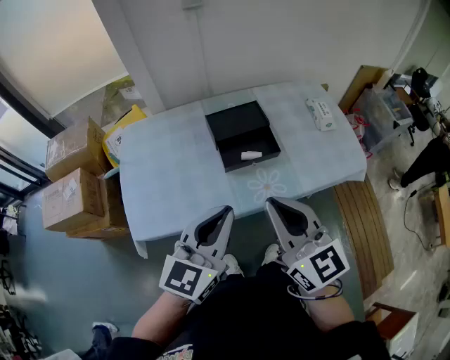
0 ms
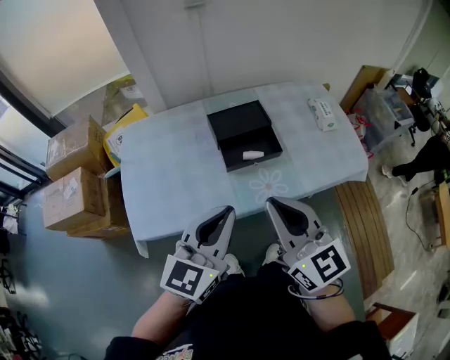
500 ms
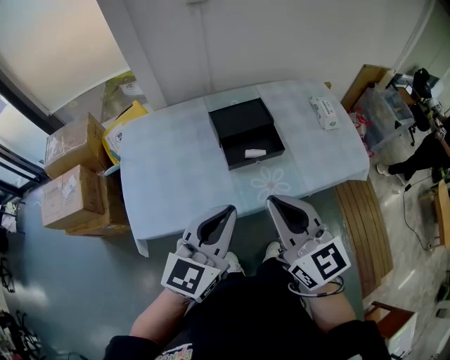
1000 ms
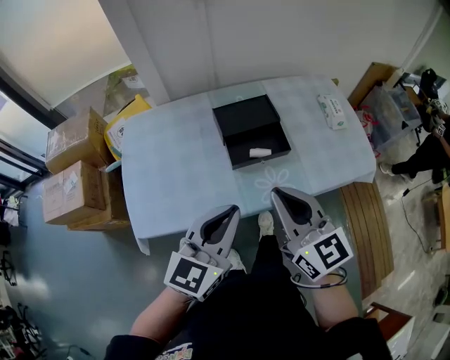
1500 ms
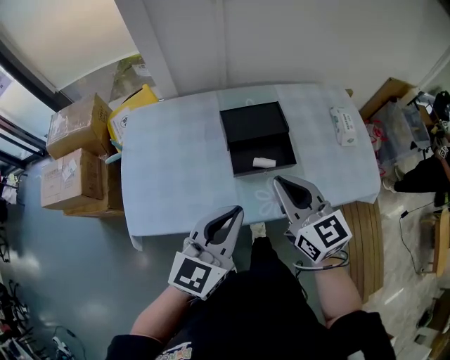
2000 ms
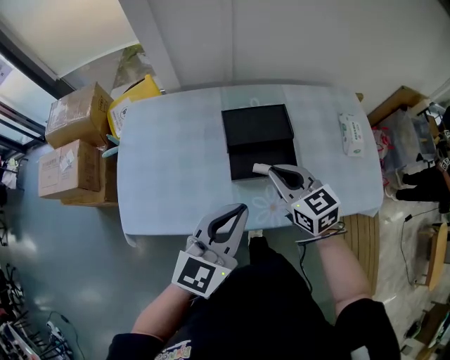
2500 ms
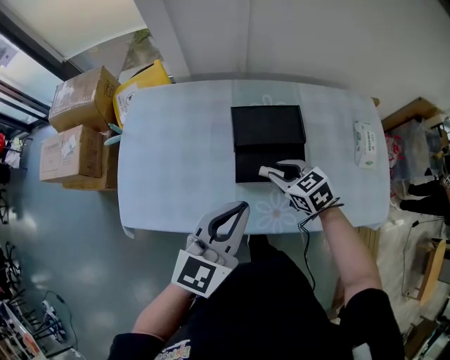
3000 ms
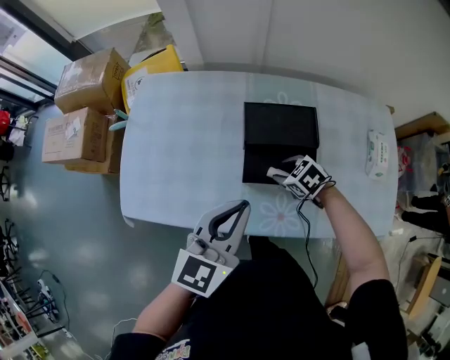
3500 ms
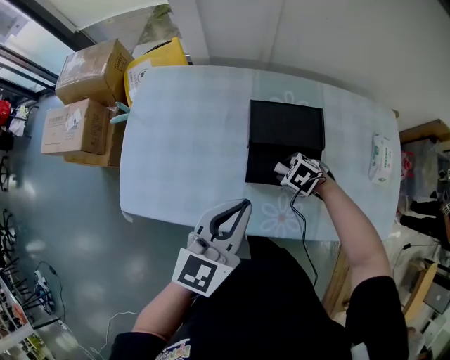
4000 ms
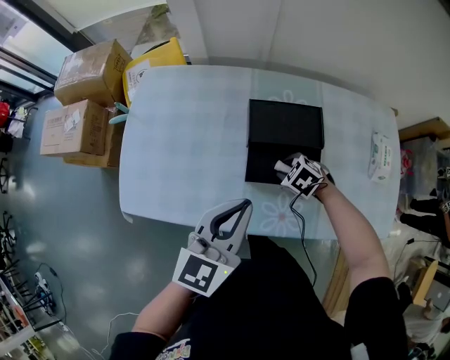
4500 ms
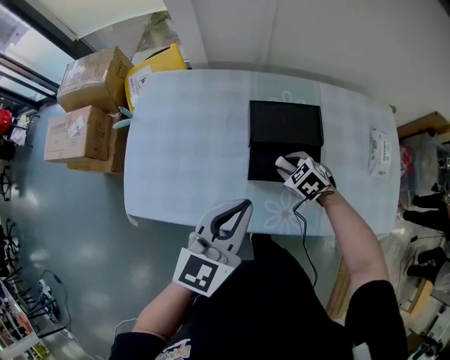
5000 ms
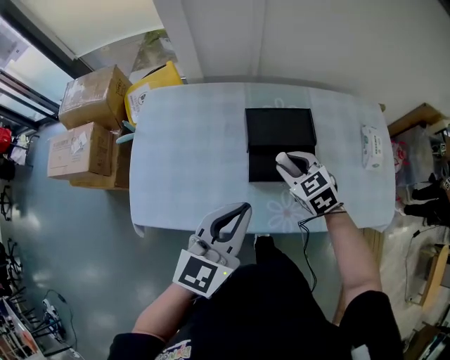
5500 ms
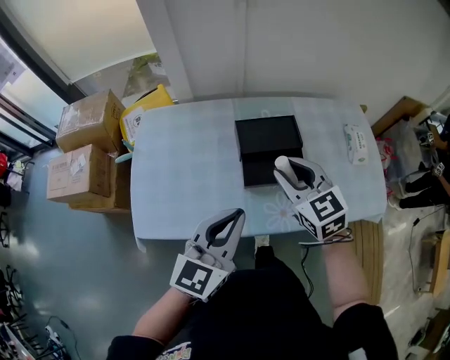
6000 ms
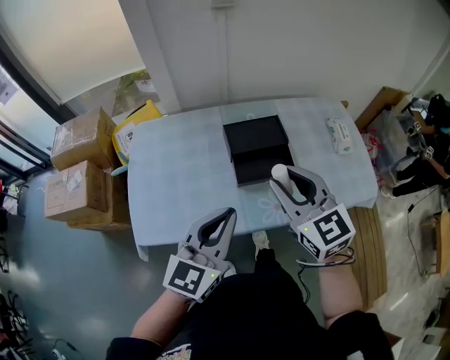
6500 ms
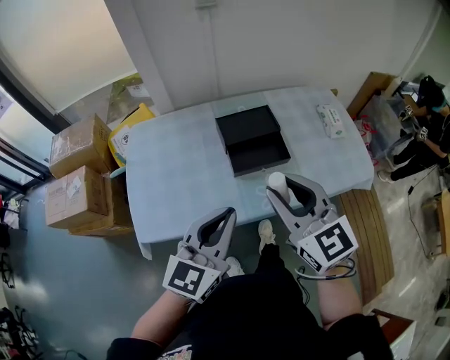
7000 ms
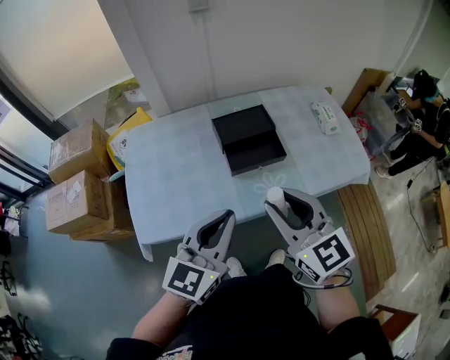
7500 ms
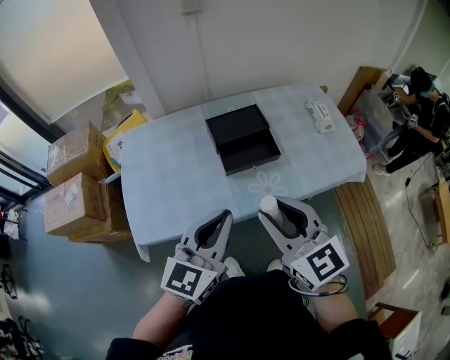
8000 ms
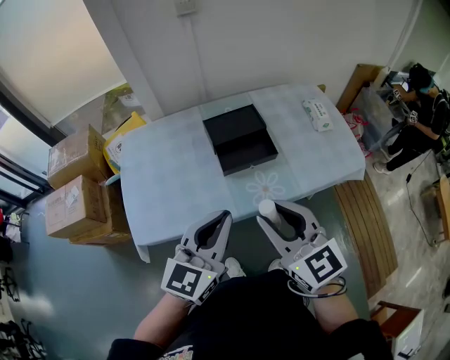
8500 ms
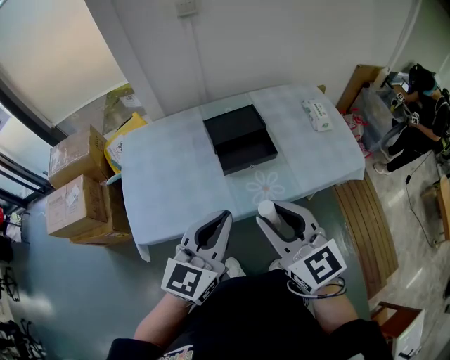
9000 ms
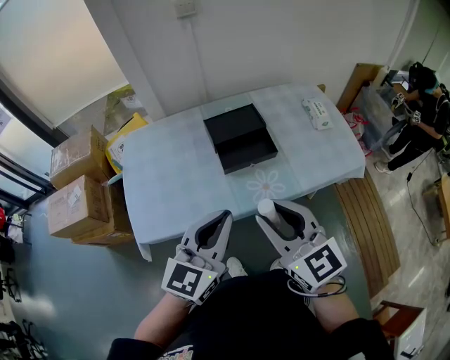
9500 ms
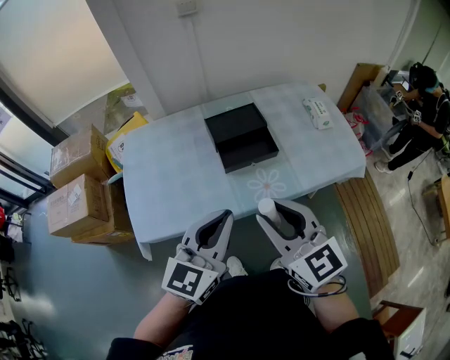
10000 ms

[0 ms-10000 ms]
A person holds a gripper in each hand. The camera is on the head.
0 ms to 2000 ms: The right gripper travels forward and downward by roughly 15 cm, while the left gripper is displaced forward by roughly 5 cm.
2000 ms to 4000 ms: The right gripper travels downward by some 30 cm, points its fingers roughly 60 degrees further downward, and opens its fingers; the left gripper changes place by about 10 cm.
4000 ms to 6000 ms: The right gripper travels upward by roughly 30 cm, and tilts its fingers approximately 50 degrees upward, while the left gripper ends up about 10 cm from where it was.
6000 ms to 8000 ms: The right gripper goes about 20 cm backward, while the left gripper travels backward by some 10 cm.
8000 ms to 10000 ms: There are only small adjustments of the grippers.

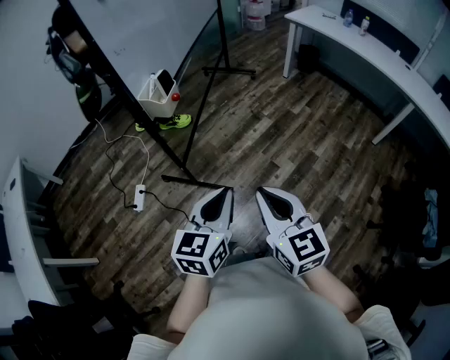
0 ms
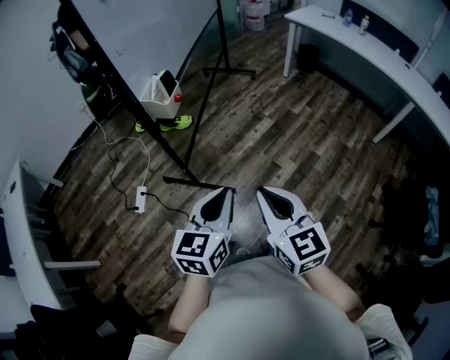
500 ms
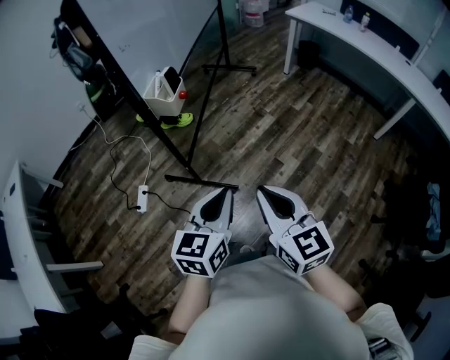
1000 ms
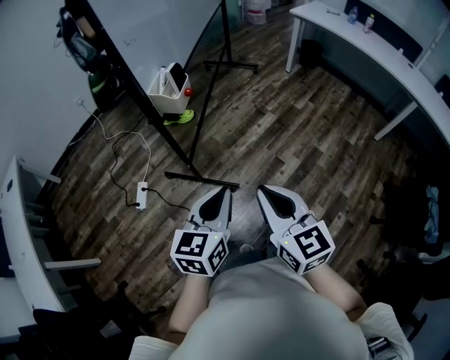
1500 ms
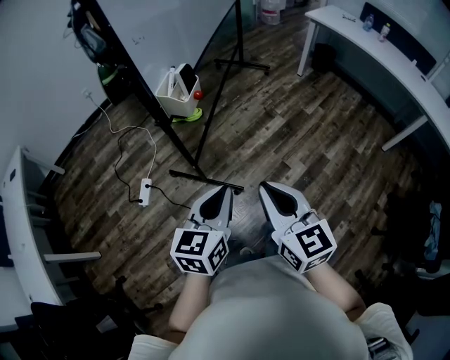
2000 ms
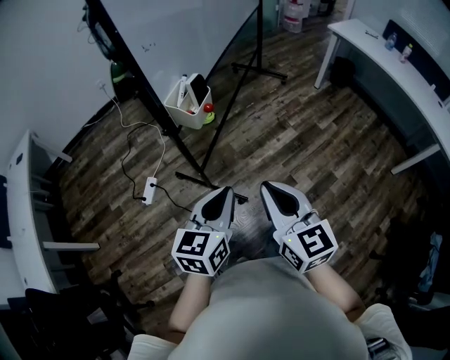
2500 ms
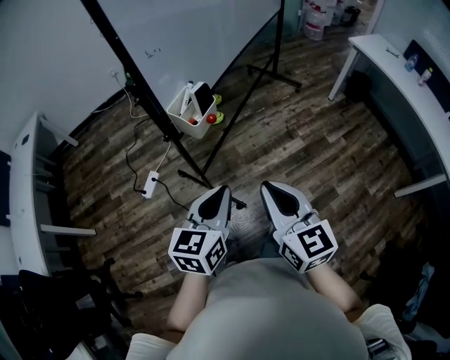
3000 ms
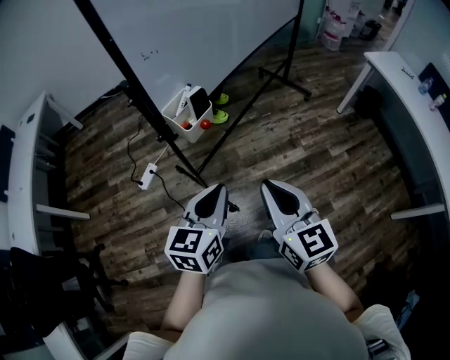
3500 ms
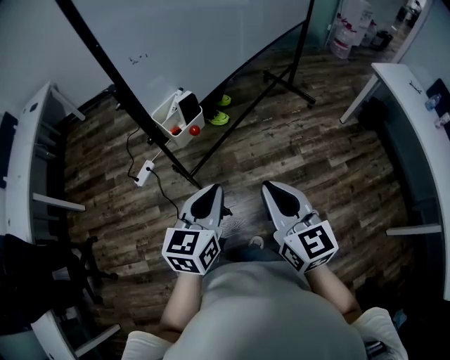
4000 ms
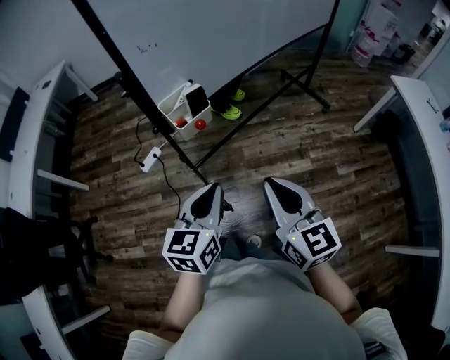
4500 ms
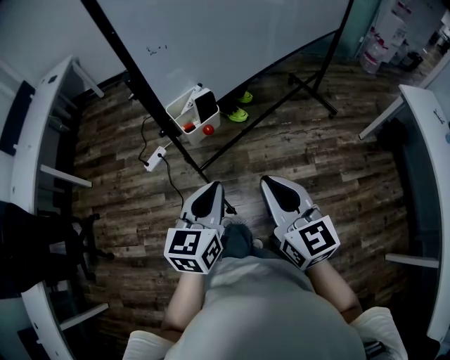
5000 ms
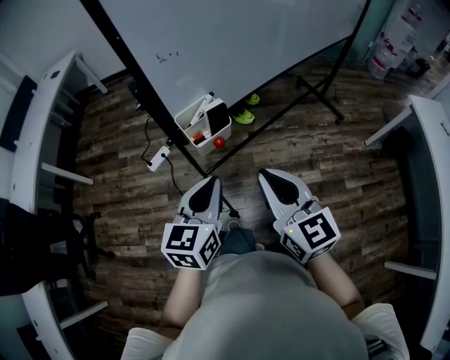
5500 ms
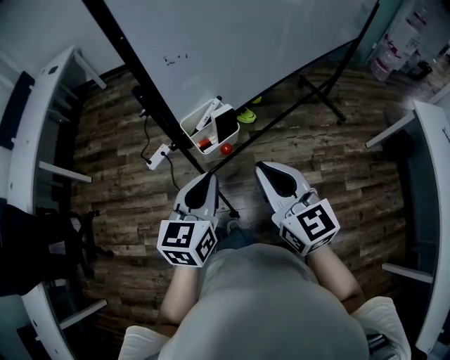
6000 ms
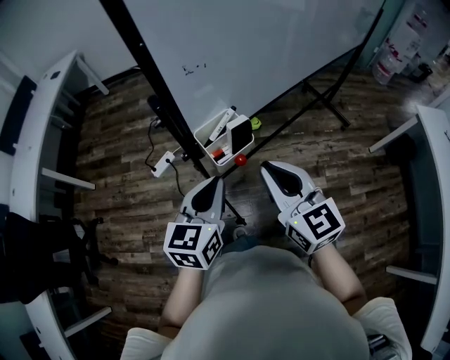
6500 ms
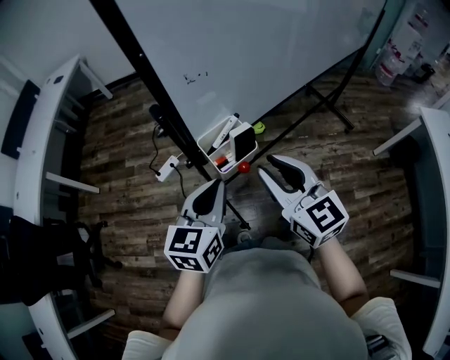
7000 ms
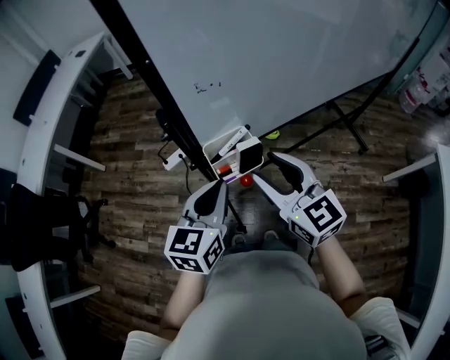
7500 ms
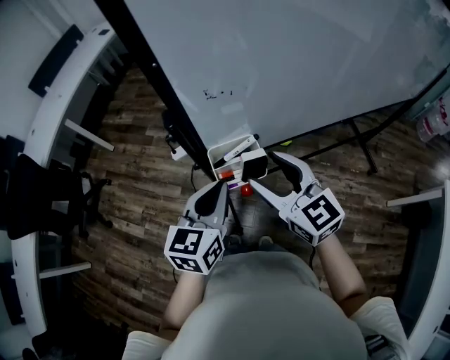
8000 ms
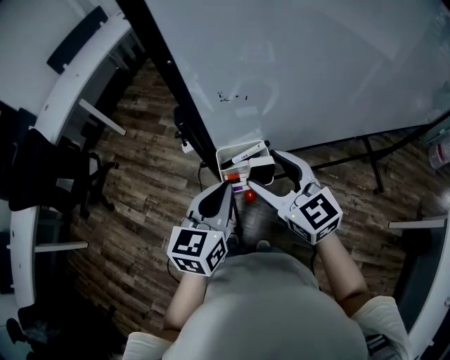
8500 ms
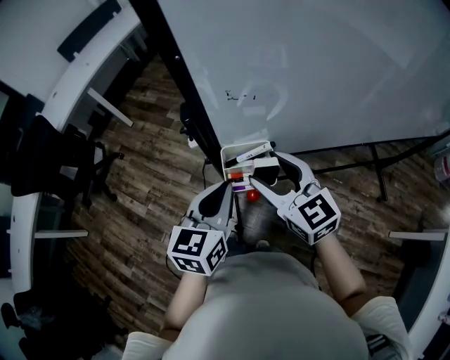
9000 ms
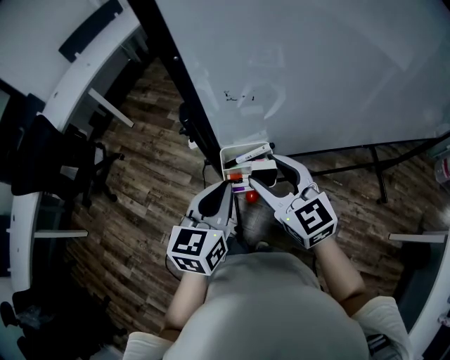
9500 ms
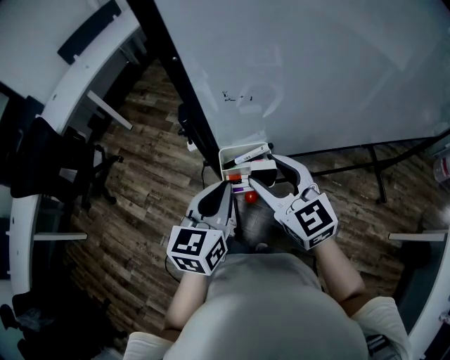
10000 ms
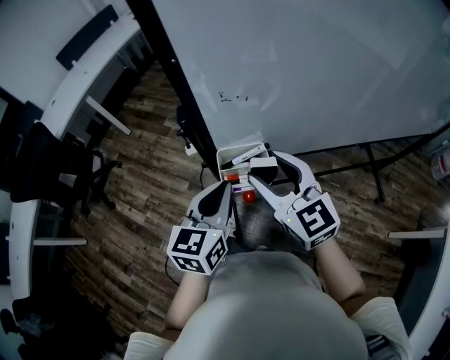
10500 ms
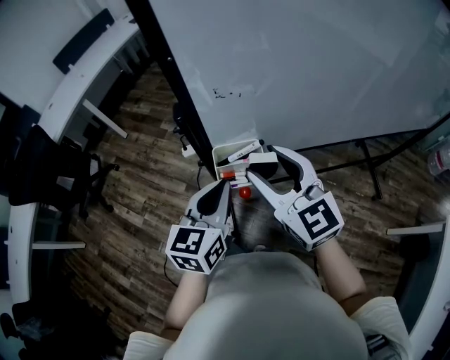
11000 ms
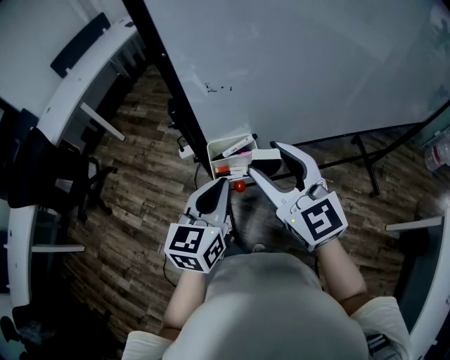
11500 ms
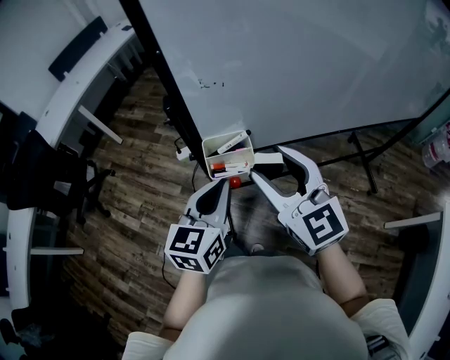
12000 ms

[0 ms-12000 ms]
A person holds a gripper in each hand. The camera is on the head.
0 ms to 2000 ms: Both grippers move to the left and forward, some 10 cm.
2000 ms to 4000 ms: Both grippers move forward and to the right, approximately 20 cm. The left gripper swivels approximately 30 degrees, while the right gripper swivels roughly 20 degrees.
4000 ms to 6000 ms: The left gripper goes approximately 15 cm forward and to the left. The right gripper goes some 15 cm forward.
6000 ms to 8000 ms: The right gripper is displaced forward by about 15 cm, turns by approximately 30 degrees, and opens its fingers. The left gripper goes about 10 cm forward.
8000 ms to 10000 ms: The grippers move only a little.
10000 ms to 12000 ms: The right gripper shifts about 10 cm upward and backward. The left gripper shifts by approximately 5 cm.

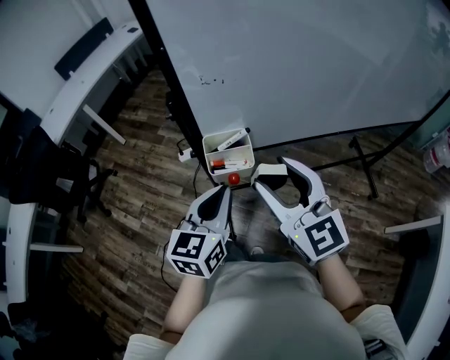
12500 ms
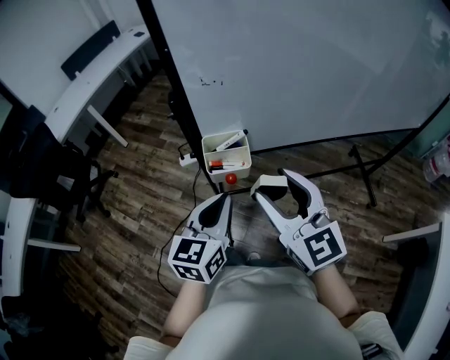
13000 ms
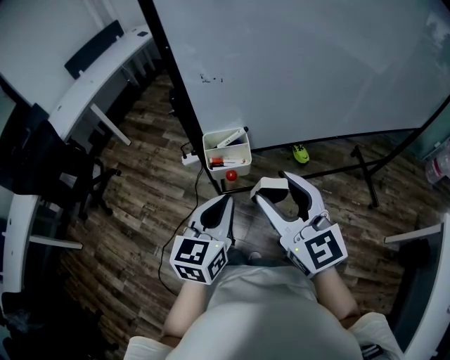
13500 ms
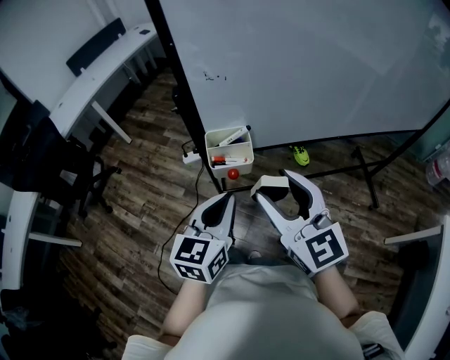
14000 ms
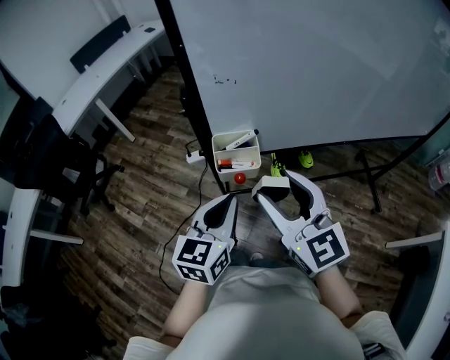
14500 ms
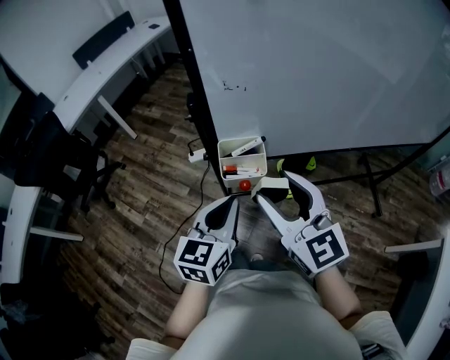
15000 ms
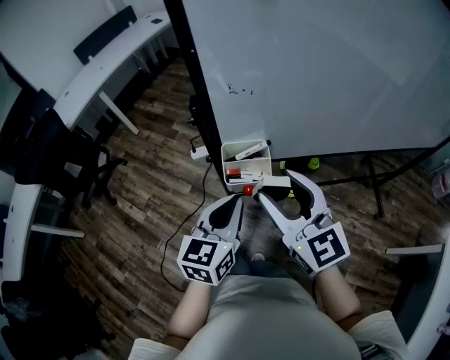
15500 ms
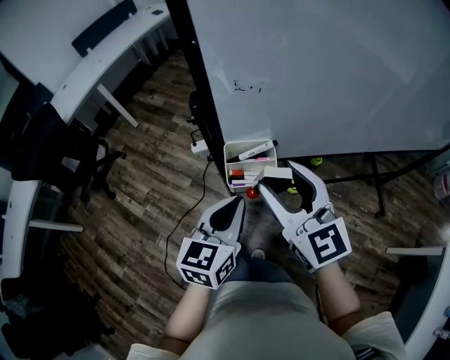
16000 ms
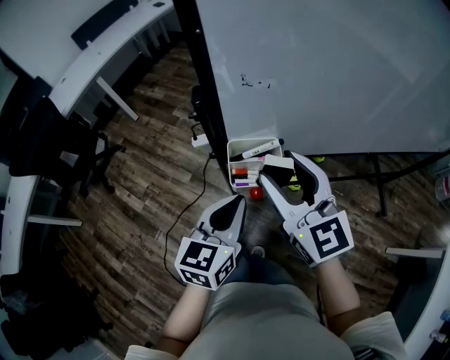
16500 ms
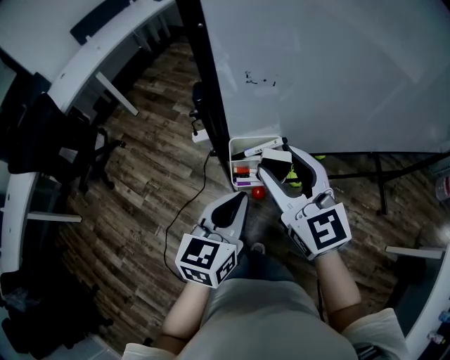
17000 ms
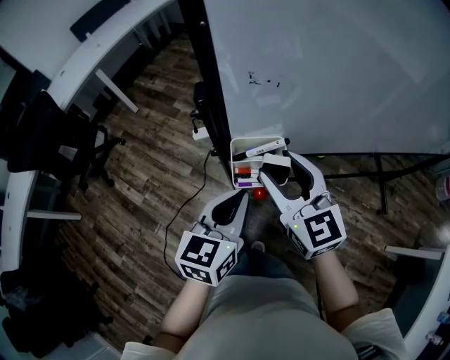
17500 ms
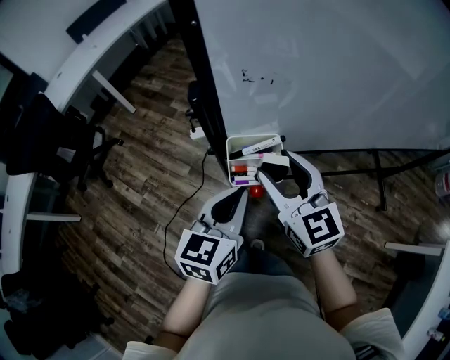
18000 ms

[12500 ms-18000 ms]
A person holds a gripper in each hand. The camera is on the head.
12500 ms to 14500 ms: There are only small adjustments of the grippers.
14500 ms to 16000 ms: The right gripper heads forward, covering some 10 cm, while the left gripper is displaced forward by some 5 cm.
16000 ms to 18000 ms: The right gripper heads downward, covering roughly 5 cm.
